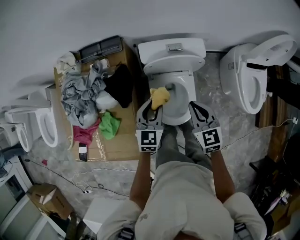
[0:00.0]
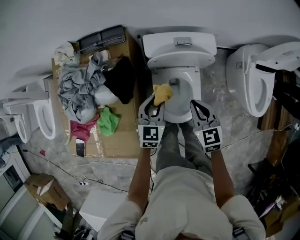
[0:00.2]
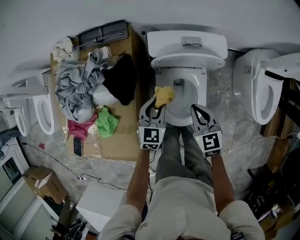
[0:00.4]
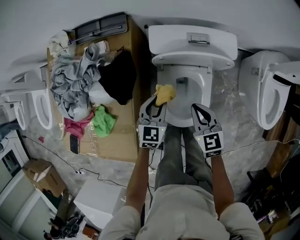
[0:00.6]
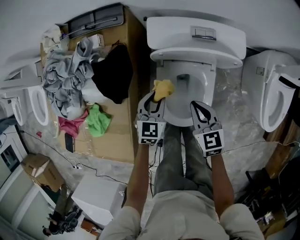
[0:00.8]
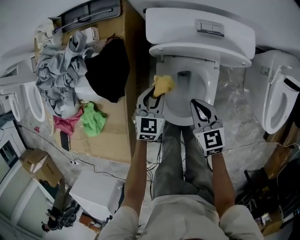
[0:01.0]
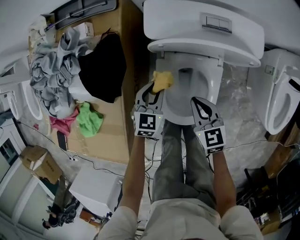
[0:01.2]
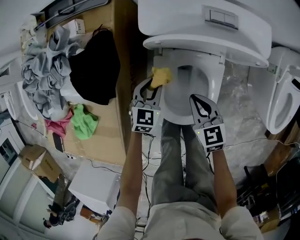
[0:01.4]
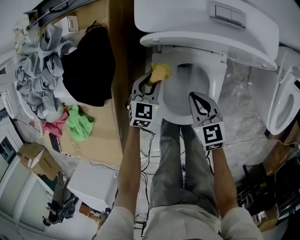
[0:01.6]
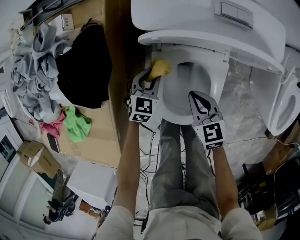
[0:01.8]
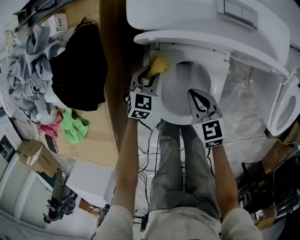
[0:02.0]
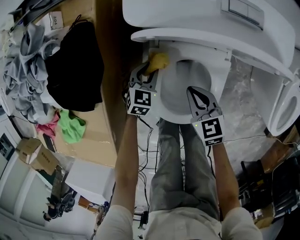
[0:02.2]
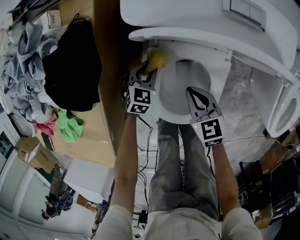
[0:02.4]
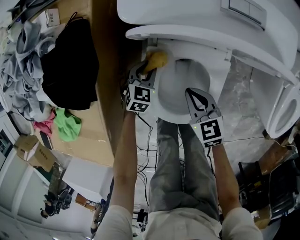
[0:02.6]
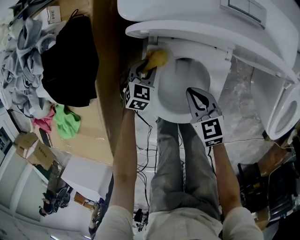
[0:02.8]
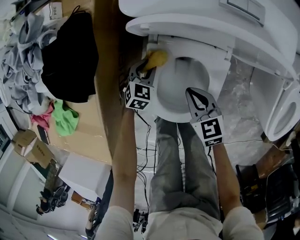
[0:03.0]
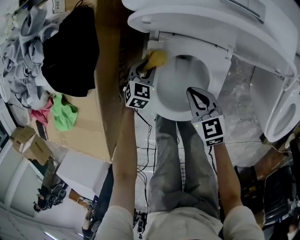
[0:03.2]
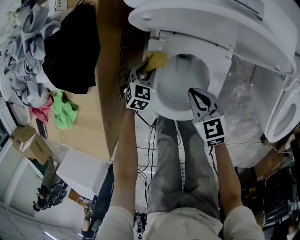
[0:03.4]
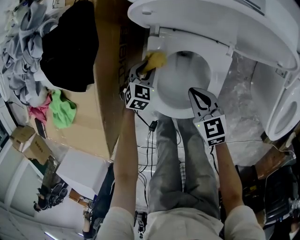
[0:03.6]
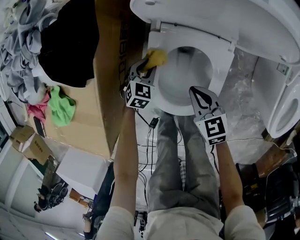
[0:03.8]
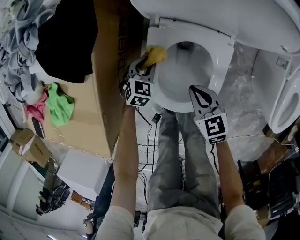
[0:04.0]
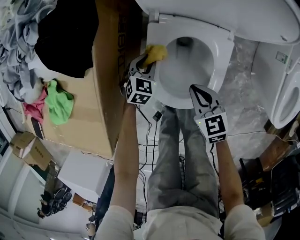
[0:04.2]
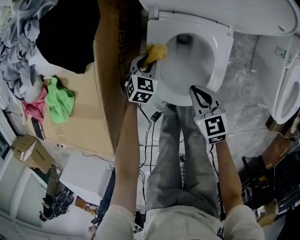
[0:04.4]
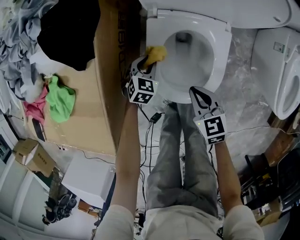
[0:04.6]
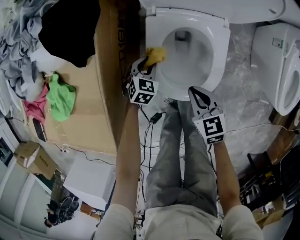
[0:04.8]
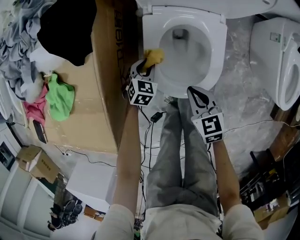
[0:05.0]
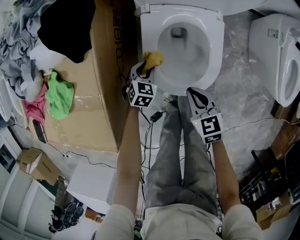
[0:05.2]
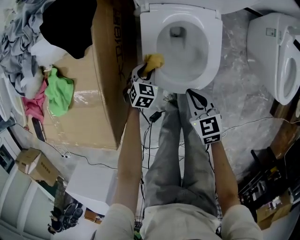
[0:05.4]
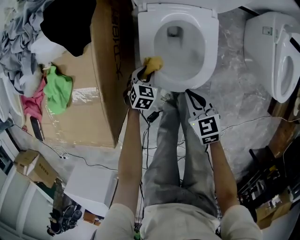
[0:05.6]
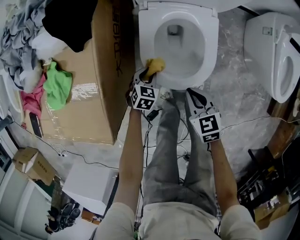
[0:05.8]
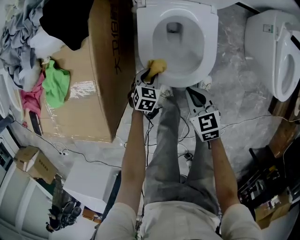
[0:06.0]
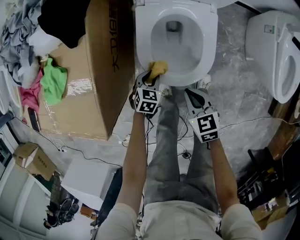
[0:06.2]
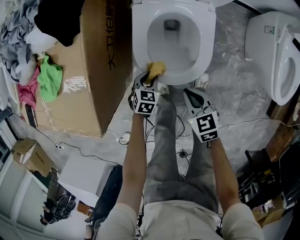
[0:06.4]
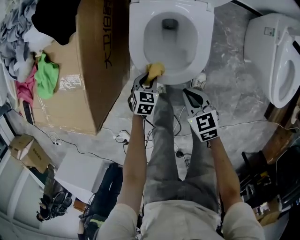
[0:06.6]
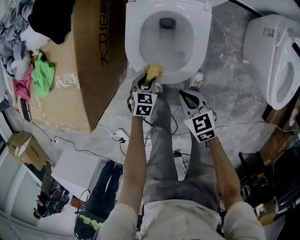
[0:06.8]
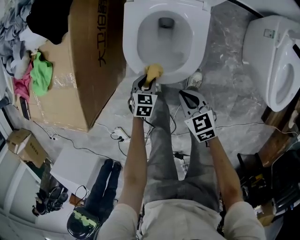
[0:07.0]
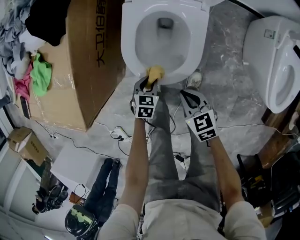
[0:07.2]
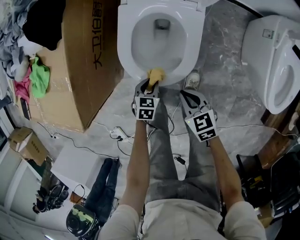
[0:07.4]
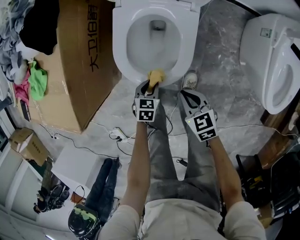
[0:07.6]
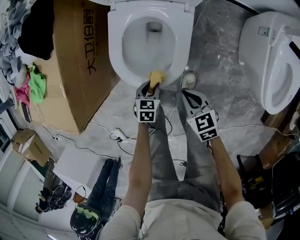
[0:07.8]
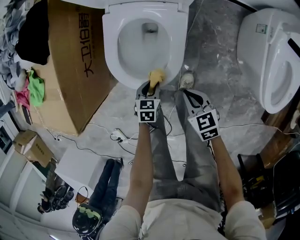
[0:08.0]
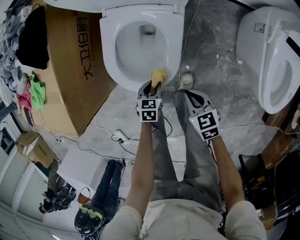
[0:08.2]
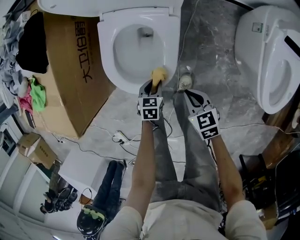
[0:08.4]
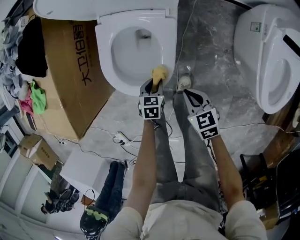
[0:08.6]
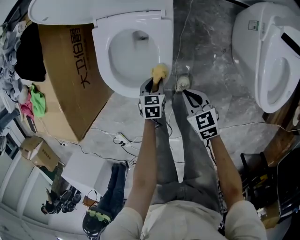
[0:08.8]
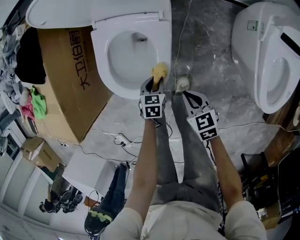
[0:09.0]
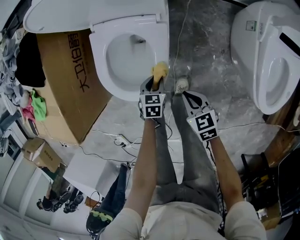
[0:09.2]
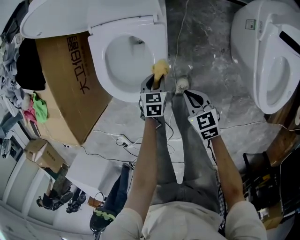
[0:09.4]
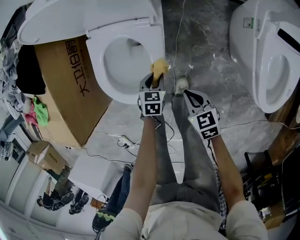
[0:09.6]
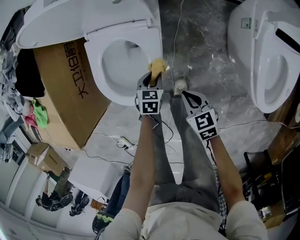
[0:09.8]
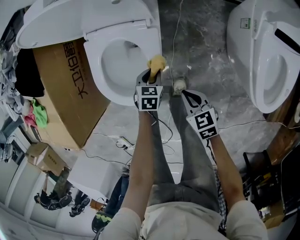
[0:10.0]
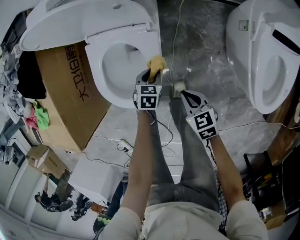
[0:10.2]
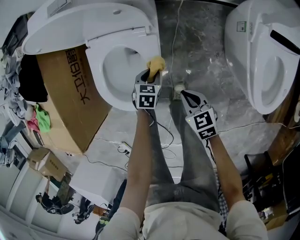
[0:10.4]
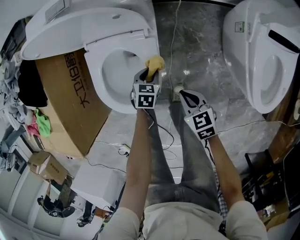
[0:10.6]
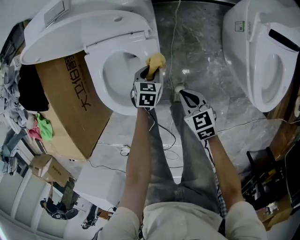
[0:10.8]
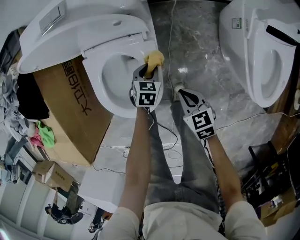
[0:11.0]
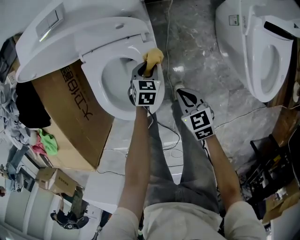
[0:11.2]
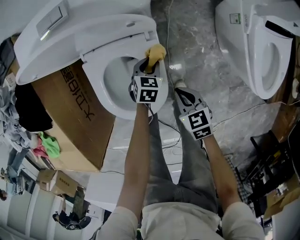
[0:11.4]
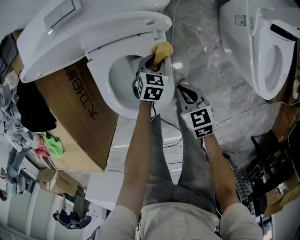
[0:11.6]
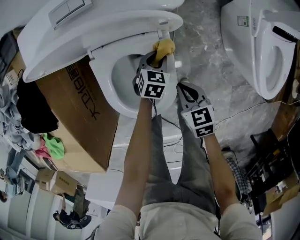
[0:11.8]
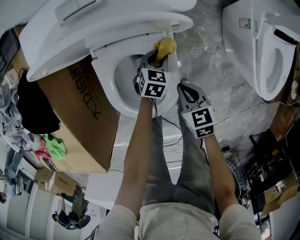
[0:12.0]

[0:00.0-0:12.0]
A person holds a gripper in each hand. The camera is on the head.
0:00.0 to 0:01.6: The two grippers go approximately 35 cm downward. The right gripper changes its angle by about 20 degrees.
0:01.6 to 0:03.0: The right gripper is displaced downward by approximately 5 cm; the left gripper moves downward, some 10 cm.
0:03.0 to 0:04.4: The grippers both shift backward by approximately 10 cm.
0:04.4 to 0:06.0: Both grippers move backward, approximately 15 cm.
0:06.0 to 0:07.6: The left gripper moves to the right and backward, some 15 cm, while the right gripper moves to the right, approximately 10 cm.
0:07.6 to 0:09.0: The two grippers go about 10 cm to the right.
0:09.0 to 0:10.4: The left gripper heads forward and to the right, covering about 10 cm, while the right gripper shifts by approximately 5 cm.
0:10.4 to 0:12.0: The left gripper shifts roughly 10 cm forward. The right gripper heads to the left and forward, covering some 10 cm.

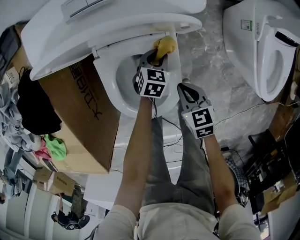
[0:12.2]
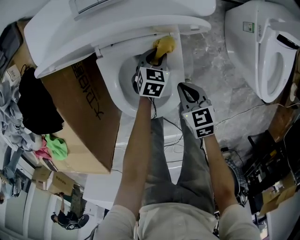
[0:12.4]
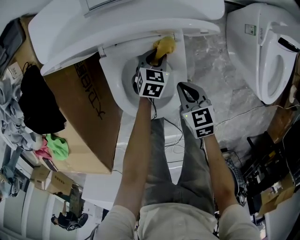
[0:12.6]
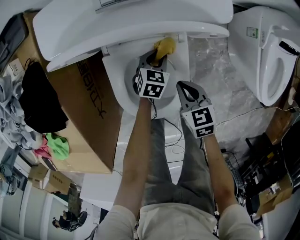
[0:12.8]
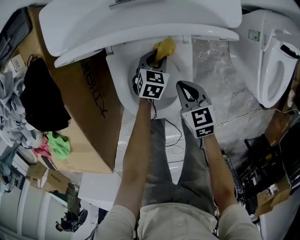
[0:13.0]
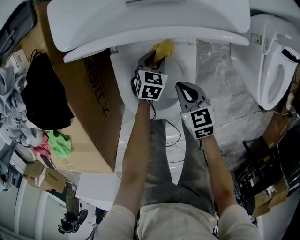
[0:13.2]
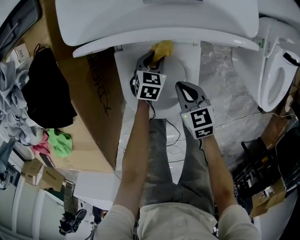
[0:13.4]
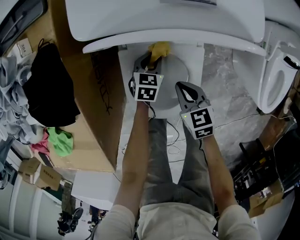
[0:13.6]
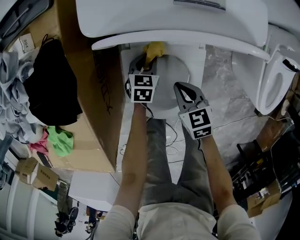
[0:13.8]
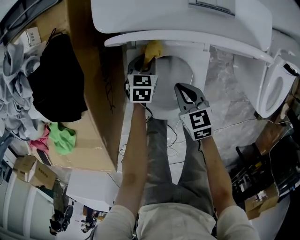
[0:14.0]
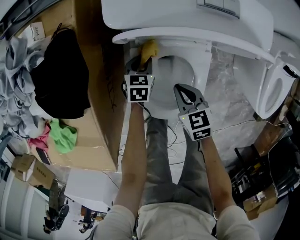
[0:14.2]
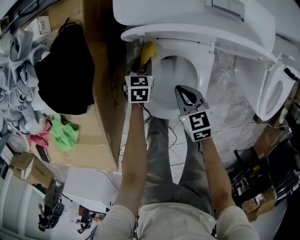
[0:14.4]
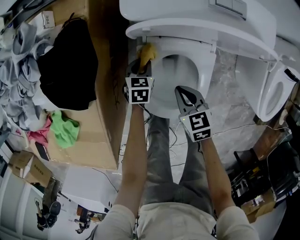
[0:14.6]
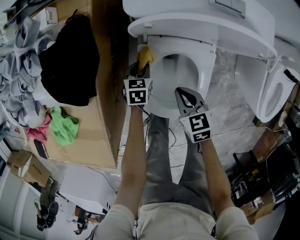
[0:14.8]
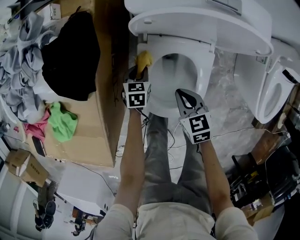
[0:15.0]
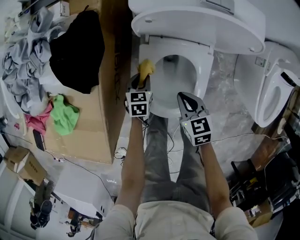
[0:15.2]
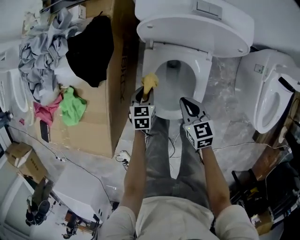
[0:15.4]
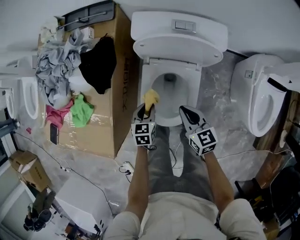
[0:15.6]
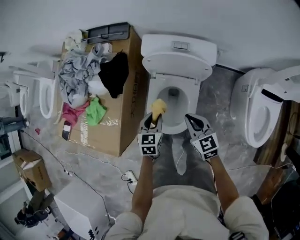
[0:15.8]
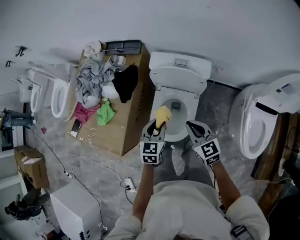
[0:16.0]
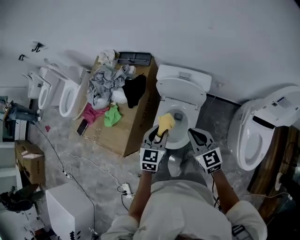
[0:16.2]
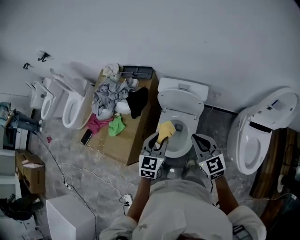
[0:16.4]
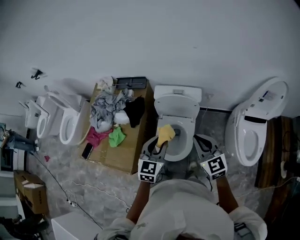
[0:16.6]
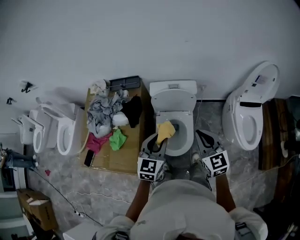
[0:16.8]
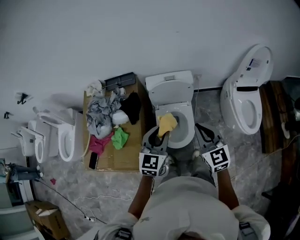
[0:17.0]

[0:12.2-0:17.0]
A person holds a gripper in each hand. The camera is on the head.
0:12.2 to 0:13.8: The two grippers go roughly 15 cm to the left.
0:13.8 to 0:15.4: The right gripper shifts roughly 10 cm upward and backward. The left gripper is displaced backward, to the left and upward by approximately 20 cm.
0:15.4 to 0:17.0: Both grippers move upward, approximately 50 cm. The left gripper tilts its fingers some 40 degrees upward, while the right gripper rotates some 40 degrees.

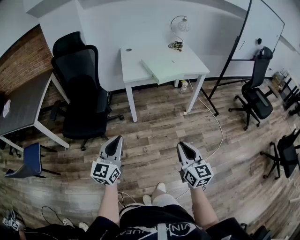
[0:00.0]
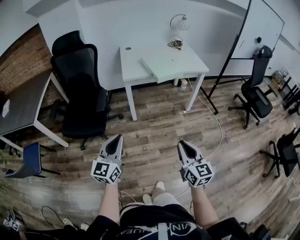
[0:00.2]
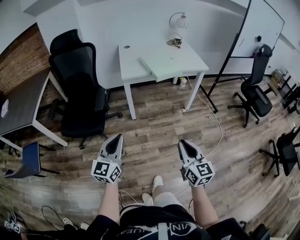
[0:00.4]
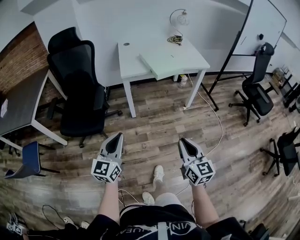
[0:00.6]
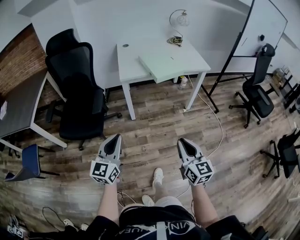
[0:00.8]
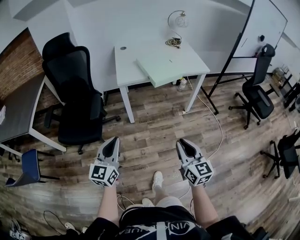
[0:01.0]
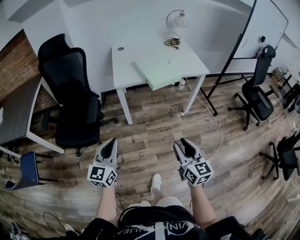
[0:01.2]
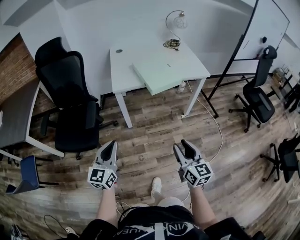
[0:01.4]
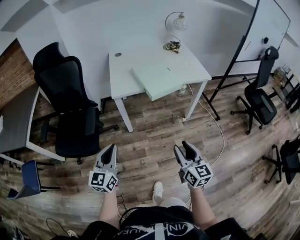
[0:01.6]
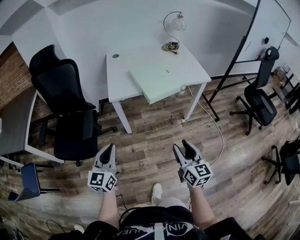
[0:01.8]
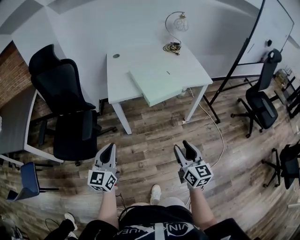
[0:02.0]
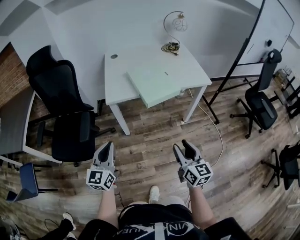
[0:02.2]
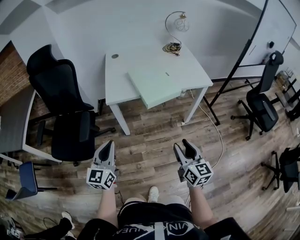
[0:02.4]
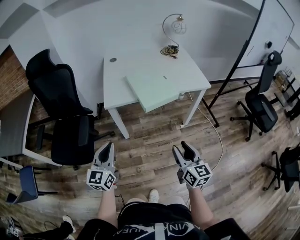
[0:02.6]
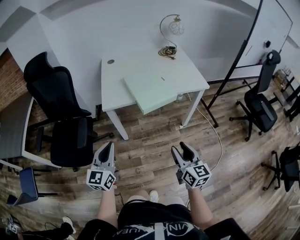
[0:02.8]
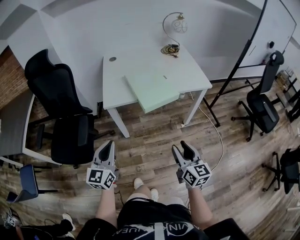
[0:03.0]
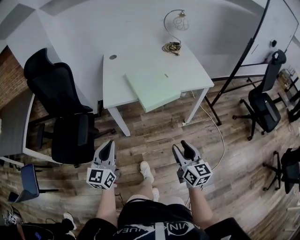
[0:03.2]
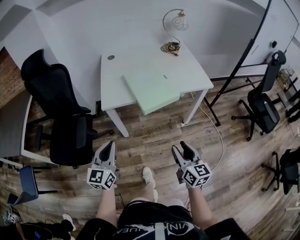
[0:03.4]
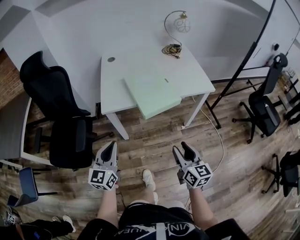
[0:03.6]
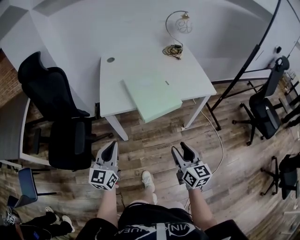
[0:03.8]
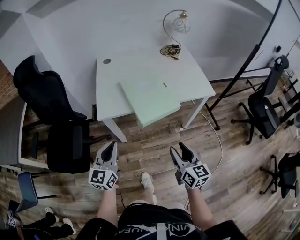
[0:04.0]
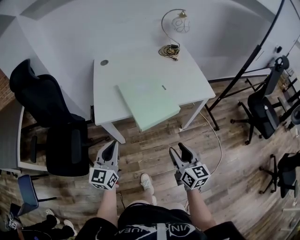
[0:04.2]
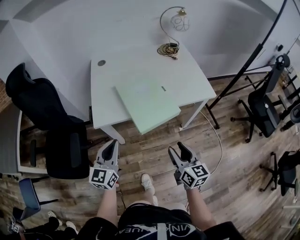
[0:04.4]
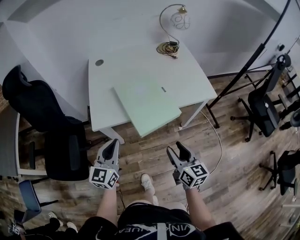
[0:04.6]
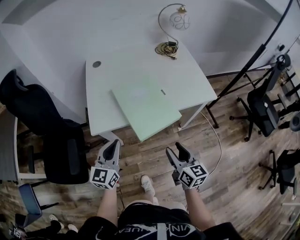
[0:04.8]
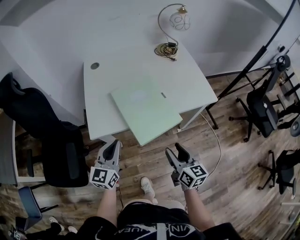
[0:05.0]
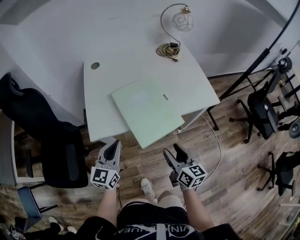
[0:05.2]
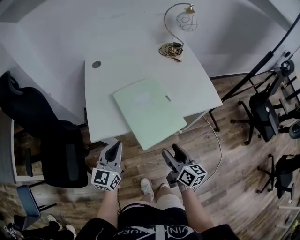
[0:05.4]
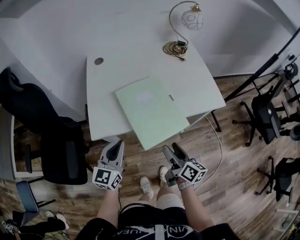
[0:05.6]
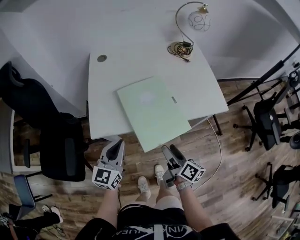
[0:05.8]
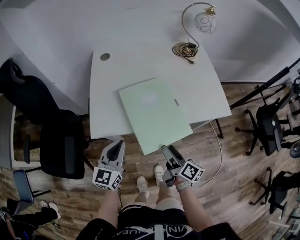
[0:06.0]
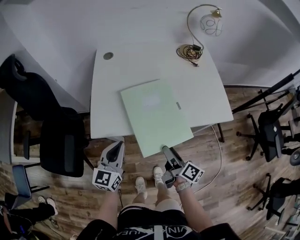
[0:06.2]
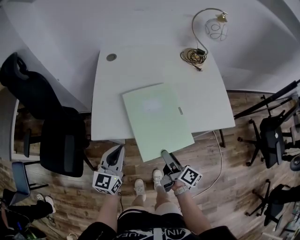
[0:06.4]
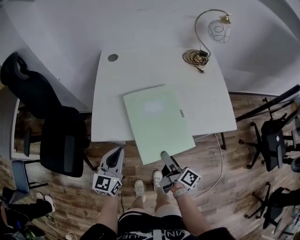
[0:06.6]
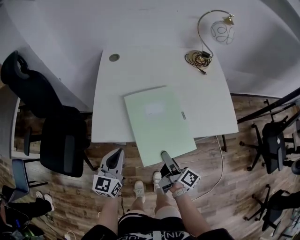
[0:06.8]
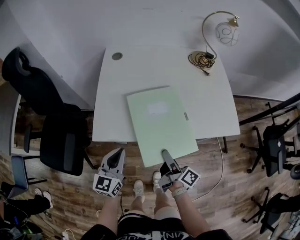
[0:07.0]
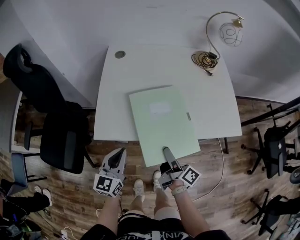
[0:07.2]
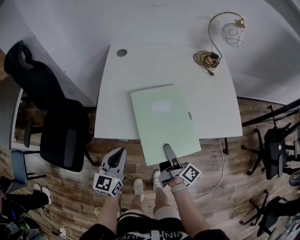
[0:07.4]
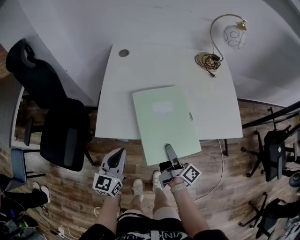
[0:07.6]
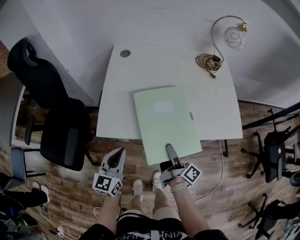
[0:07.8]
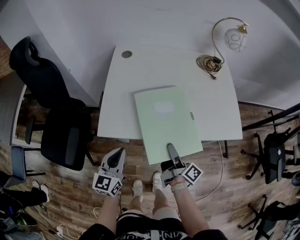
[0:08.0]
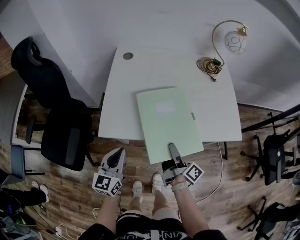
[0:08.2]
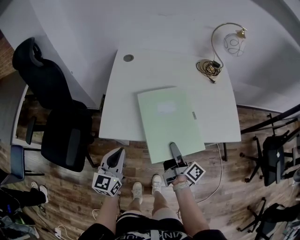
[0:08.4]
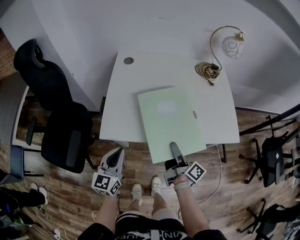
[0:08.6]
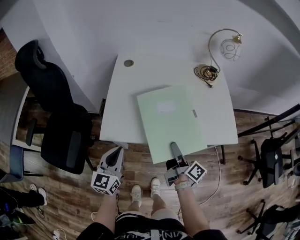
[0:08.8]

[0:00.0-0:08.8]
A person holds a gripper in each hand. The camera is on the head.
0:00.0 to 0:01.4: Both grippers travel together forward, approximately 15 cm.
0:01.4 to 0:03.0: The right gripper travels forward and to the right by some 15 cm, while the left gripper moves forward, approximately 15 cm.
0:03.0 to 0:04.4: Both grippers travel together forward, roughly 15 cm.
0:04.4 to 0:05.8: Both grippers move forward and downward, roughly 15 cm. The right gripper rotates roughly 40 degrees, and opens.
0:05.8 to 0:07.4: The right gripper moves forward, roughly 10 cm.
0:07.4 to 0:08.8: The right gripper shifts by roughly 5 cm.
